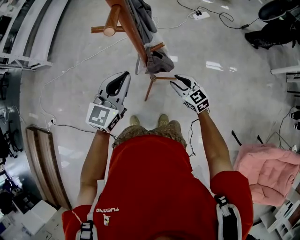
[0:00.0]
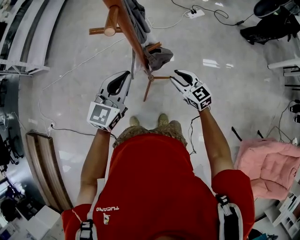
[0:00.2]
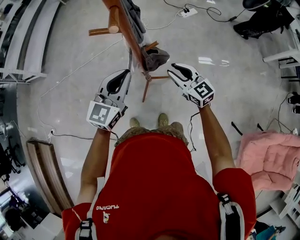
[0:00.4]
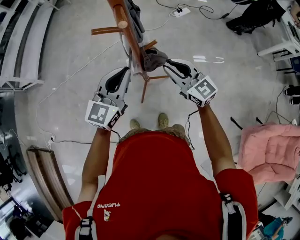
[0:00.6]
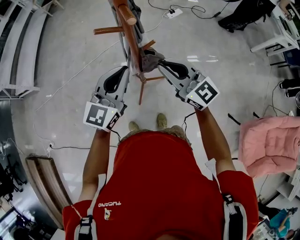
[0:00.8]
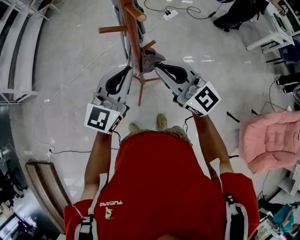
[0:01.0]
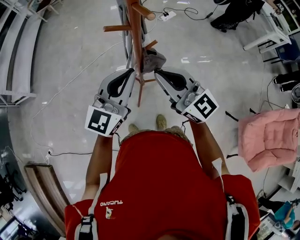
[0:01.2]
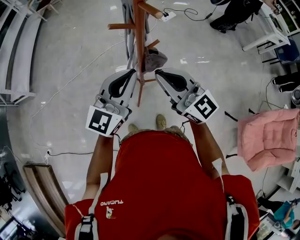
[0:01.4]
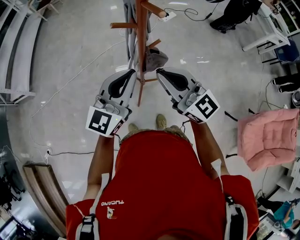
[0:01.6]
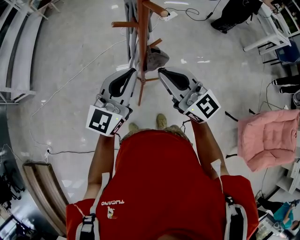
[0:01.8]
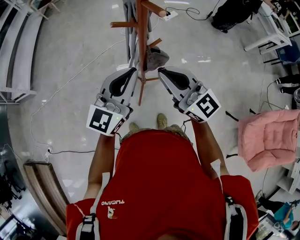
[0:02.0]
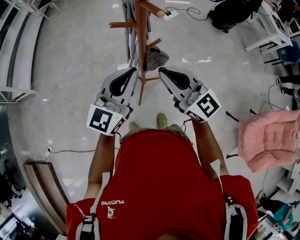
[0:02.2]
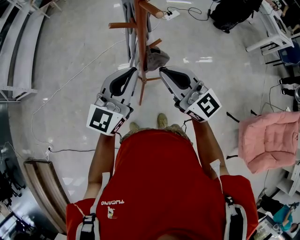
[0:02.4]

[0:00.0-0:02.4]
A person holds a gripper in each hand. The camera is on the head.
0:00.0 to 0:01.2: The left gripper moves upward, roughly 10 cm, and turns by roughly 20 degrees. Meanwhile the right gripper is displaced upward by roughly 30 cm, tilts its fingers approximately 30 degrees upward, and closes its fingers.
0:01.2 to 0:02.4: The grippers make only small movements.

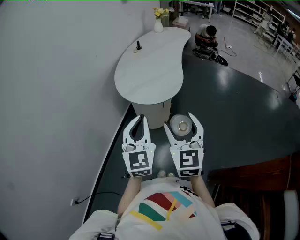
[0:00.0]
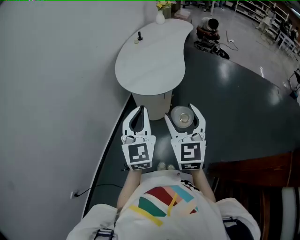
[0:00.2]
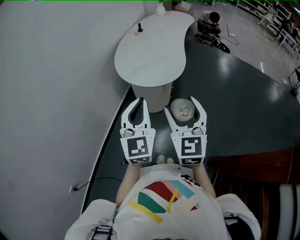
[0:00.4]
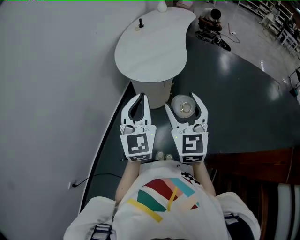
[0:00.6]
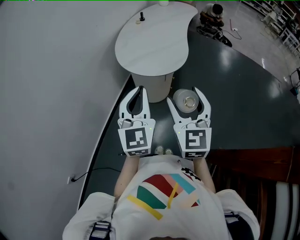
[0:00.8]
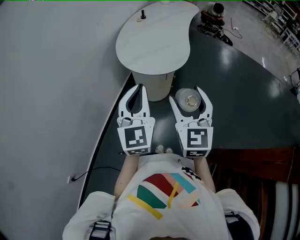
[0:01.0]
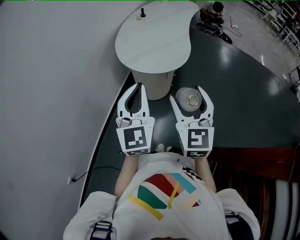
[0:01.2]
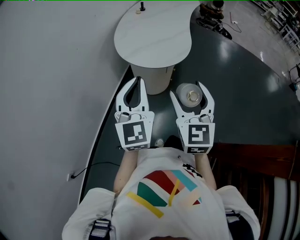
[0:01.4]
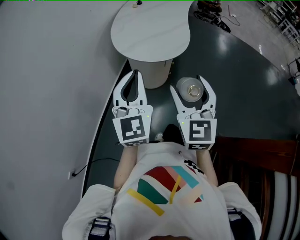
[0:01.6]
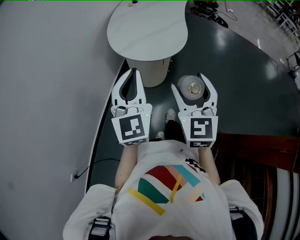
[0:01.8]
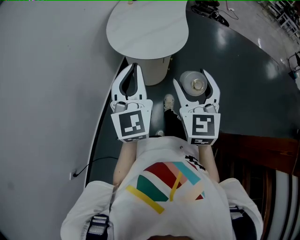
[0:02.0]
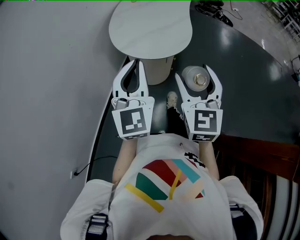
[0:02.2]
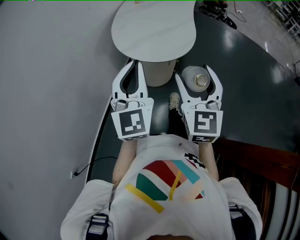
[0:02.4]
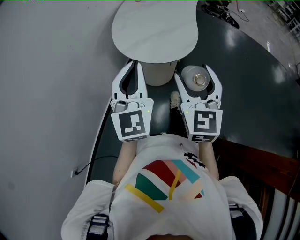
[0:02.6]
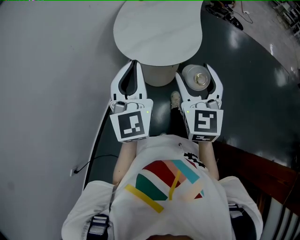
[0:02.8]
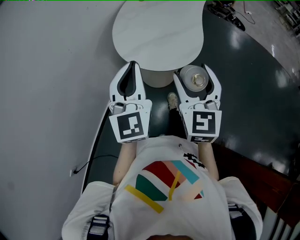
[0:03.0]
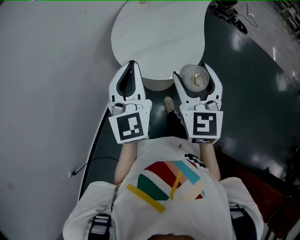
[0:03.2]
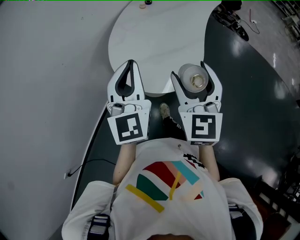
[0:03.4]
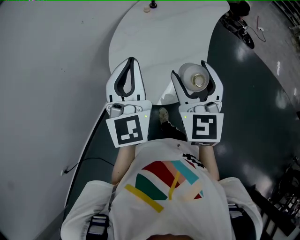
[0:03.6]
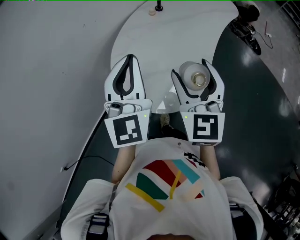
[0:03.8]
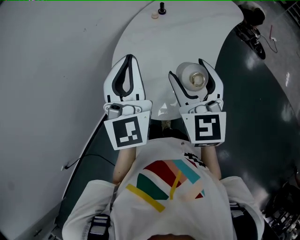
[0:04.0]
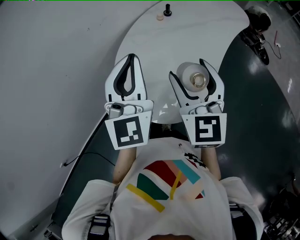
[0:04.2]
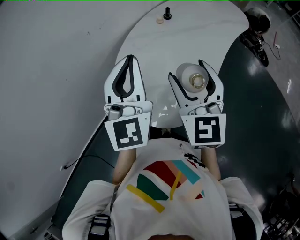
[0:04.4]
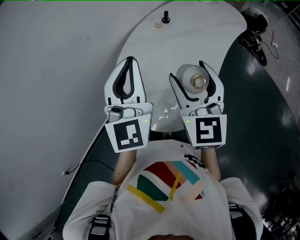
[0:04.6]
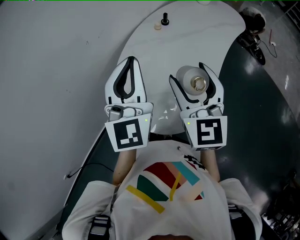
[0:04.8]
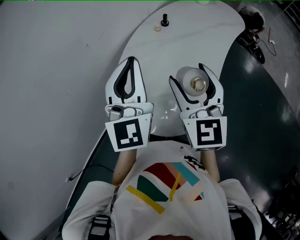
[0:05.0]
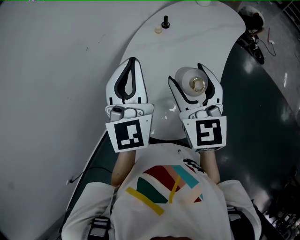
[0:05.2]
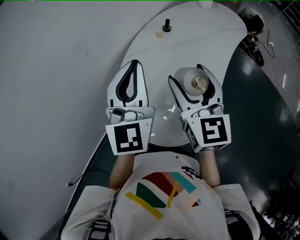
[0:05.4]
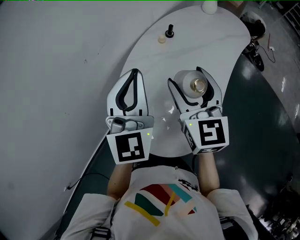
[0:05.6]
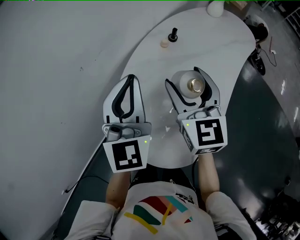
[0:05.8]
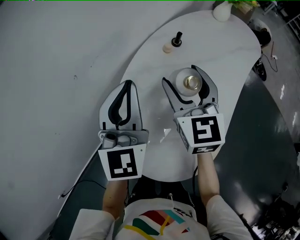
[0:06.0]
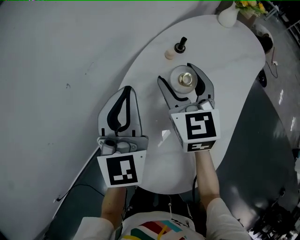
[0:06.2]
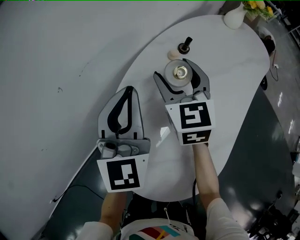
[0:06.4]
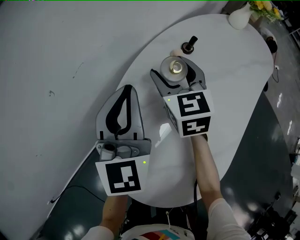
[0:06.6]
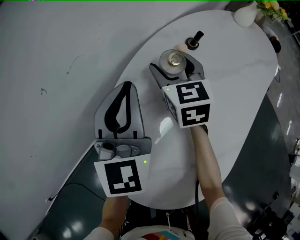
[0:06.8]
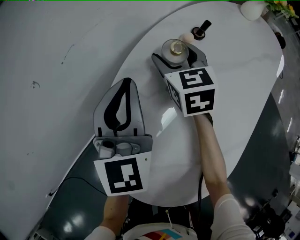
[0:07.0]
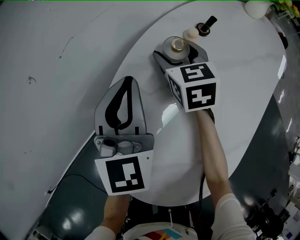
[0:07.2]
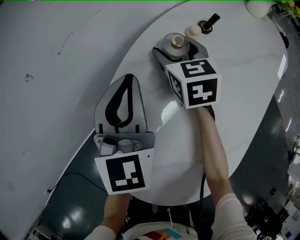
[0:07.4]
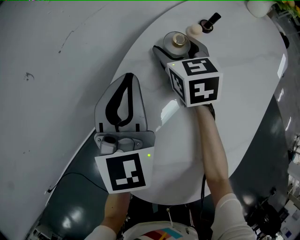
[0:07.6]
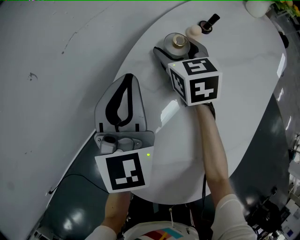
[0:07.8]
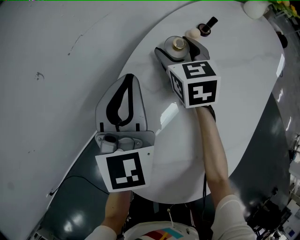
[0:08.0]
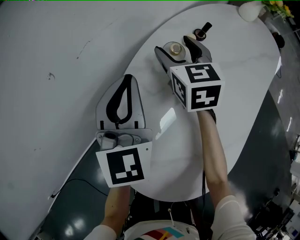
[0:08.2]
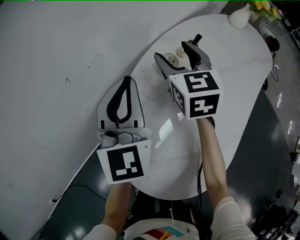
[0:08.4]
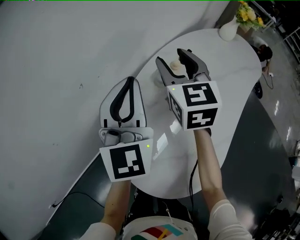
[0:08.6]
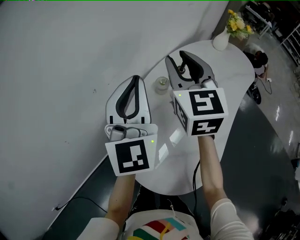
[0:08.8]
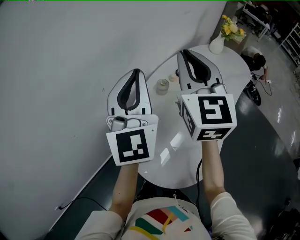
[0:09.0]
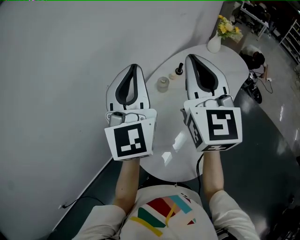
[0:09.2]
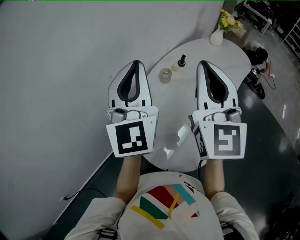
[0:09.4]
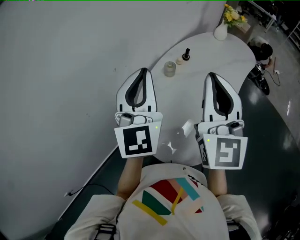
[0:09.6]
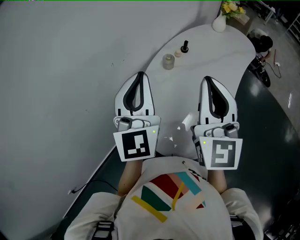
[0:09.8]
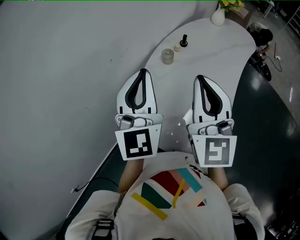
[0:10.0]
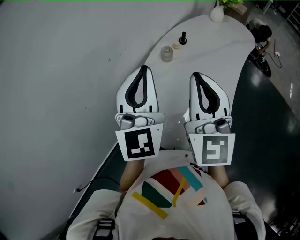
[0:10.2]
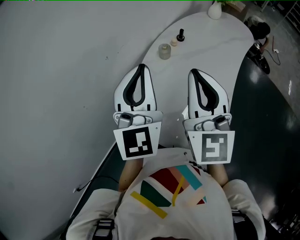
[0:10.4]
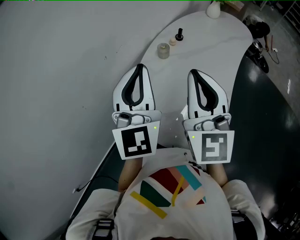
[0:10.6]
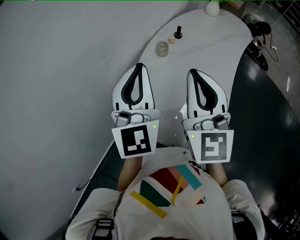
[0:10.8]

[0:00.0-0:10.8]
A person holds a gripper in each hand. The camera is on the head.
0:00.0 to 0:01.6: The left gripper moves to the left, about 5 cm.
0:01.6 to 0:03.0: The grippers both shift forward by roughly 15 cm.
0:03.0 to 0:04.6: The two grippers go roughly 30 cm forward. The right gripper changes its angle by some 20 degrees.
0:04.6 to 0:06.2: Both grippers travel together forward and downward, roughly 25 cm.
0:06.2 to 0:07.8: The right gripper goes some 20 cm downward and forward. The left gripper shifts some 10 cm downward.
0:07.8 to 0:09.2: The right gripper moves upward and backward, roughly 50 cm, points its fingers approximately 40 degrees further upward, and closes its fingers. Meanwhile the left gripper shifts approximately 35 cm upward, and rotates some 20 degrees.
0:09.2 to 0:10.8: The two grippers go some 10 cm backward and downward.

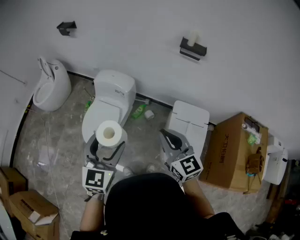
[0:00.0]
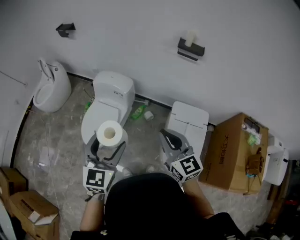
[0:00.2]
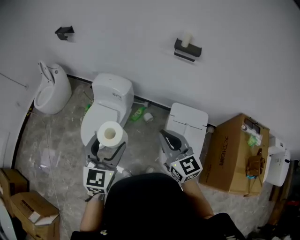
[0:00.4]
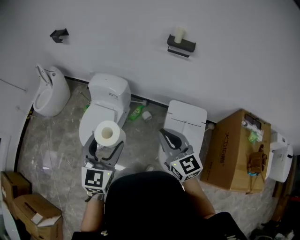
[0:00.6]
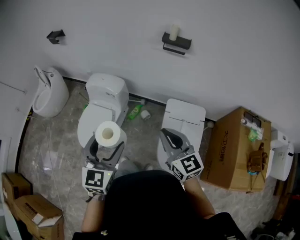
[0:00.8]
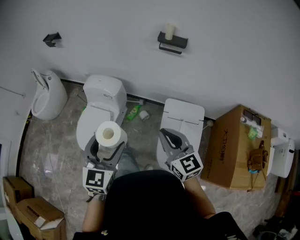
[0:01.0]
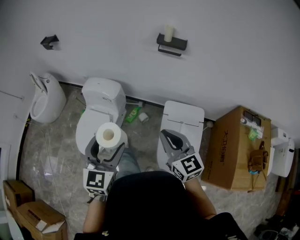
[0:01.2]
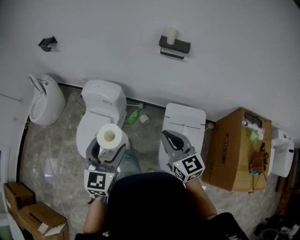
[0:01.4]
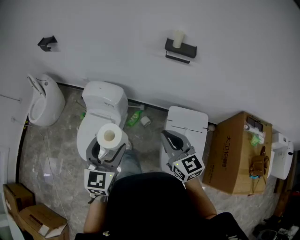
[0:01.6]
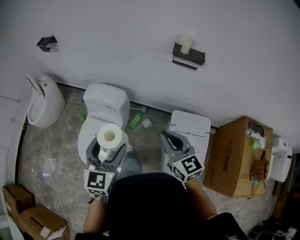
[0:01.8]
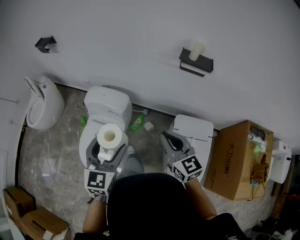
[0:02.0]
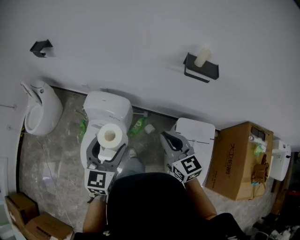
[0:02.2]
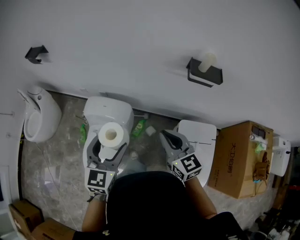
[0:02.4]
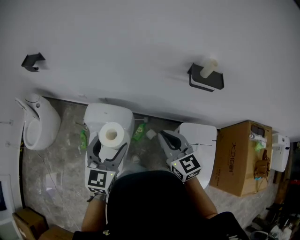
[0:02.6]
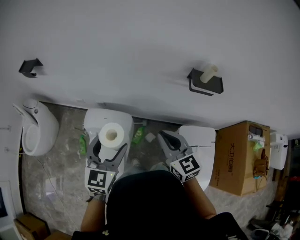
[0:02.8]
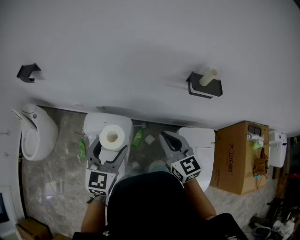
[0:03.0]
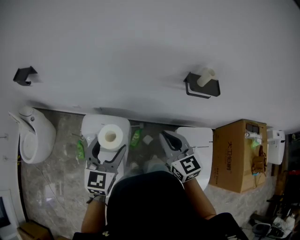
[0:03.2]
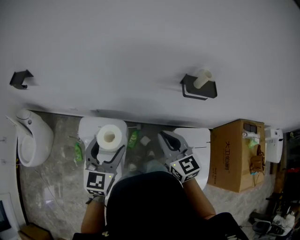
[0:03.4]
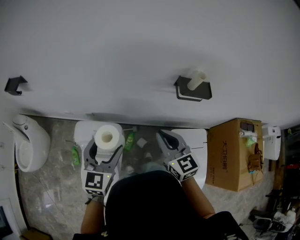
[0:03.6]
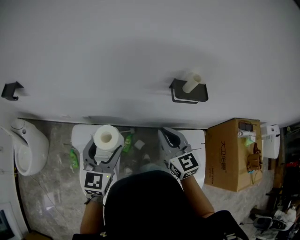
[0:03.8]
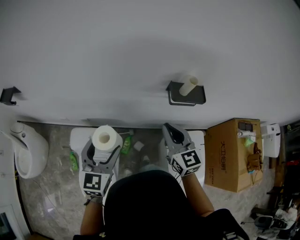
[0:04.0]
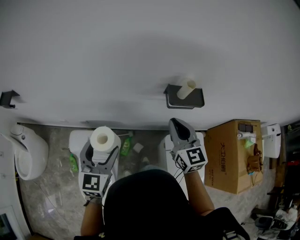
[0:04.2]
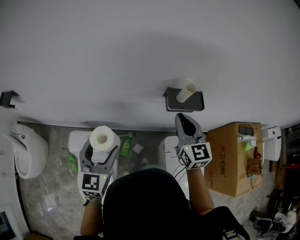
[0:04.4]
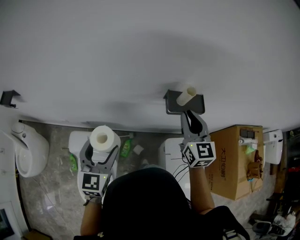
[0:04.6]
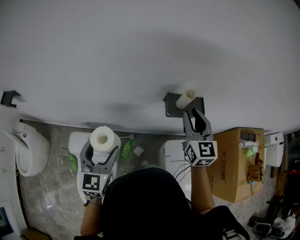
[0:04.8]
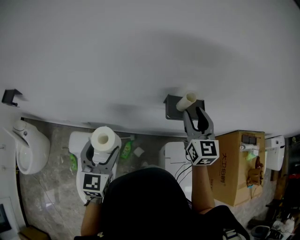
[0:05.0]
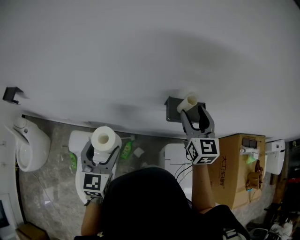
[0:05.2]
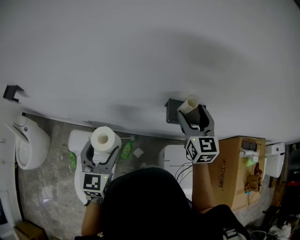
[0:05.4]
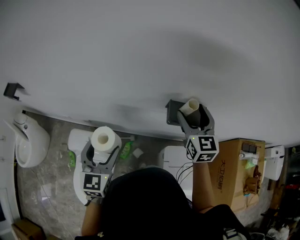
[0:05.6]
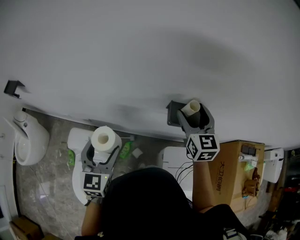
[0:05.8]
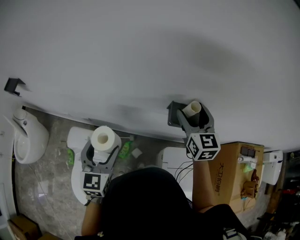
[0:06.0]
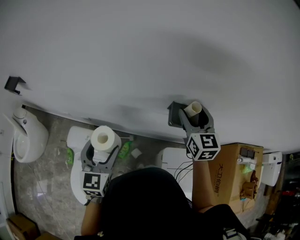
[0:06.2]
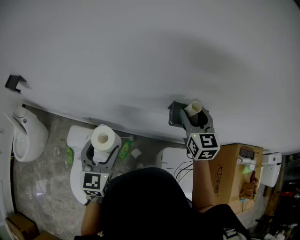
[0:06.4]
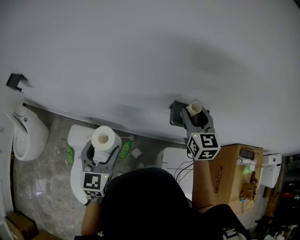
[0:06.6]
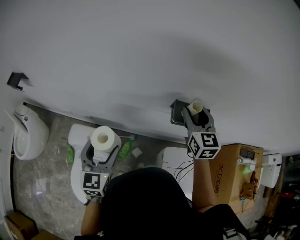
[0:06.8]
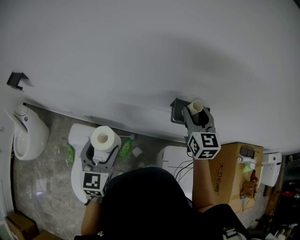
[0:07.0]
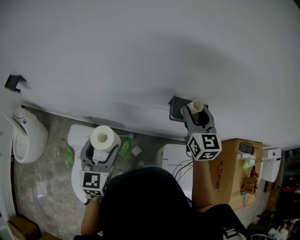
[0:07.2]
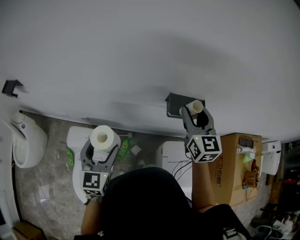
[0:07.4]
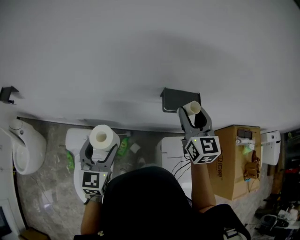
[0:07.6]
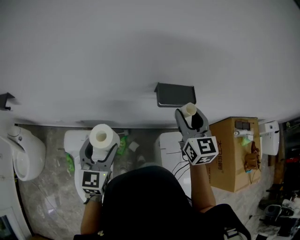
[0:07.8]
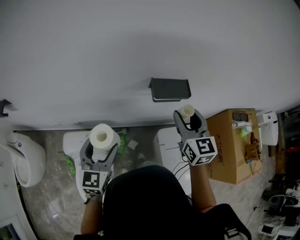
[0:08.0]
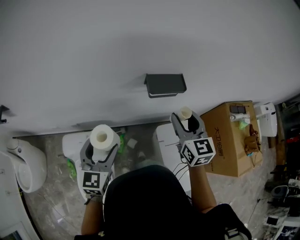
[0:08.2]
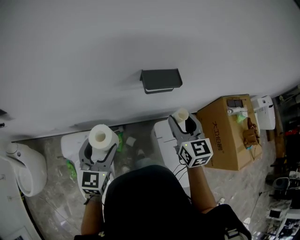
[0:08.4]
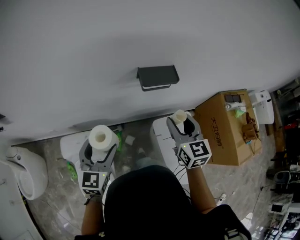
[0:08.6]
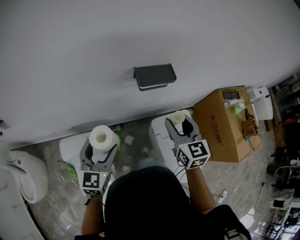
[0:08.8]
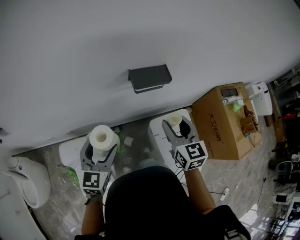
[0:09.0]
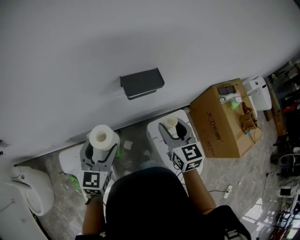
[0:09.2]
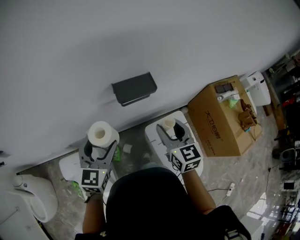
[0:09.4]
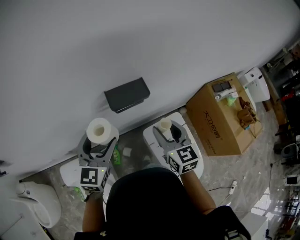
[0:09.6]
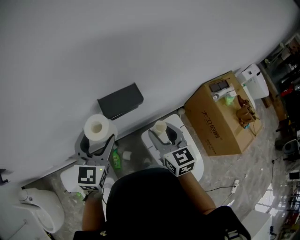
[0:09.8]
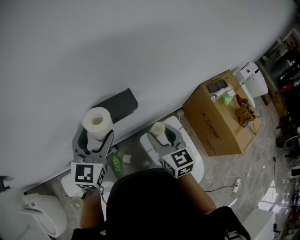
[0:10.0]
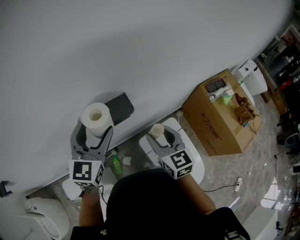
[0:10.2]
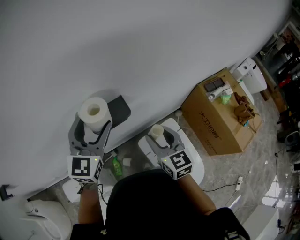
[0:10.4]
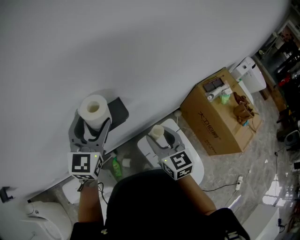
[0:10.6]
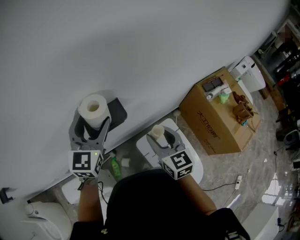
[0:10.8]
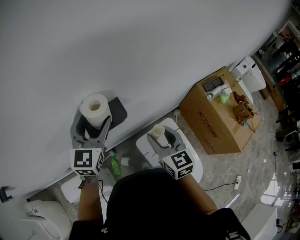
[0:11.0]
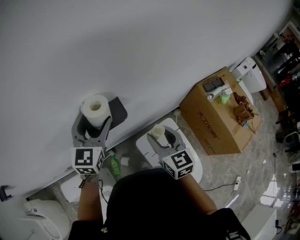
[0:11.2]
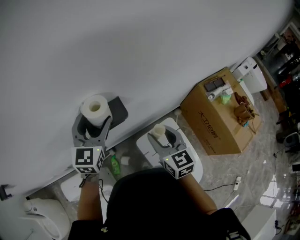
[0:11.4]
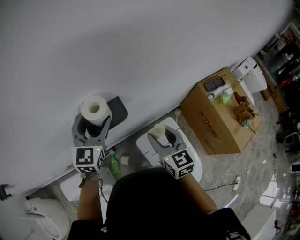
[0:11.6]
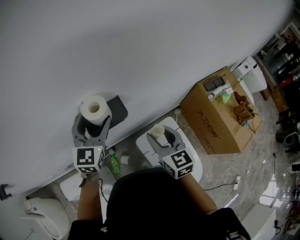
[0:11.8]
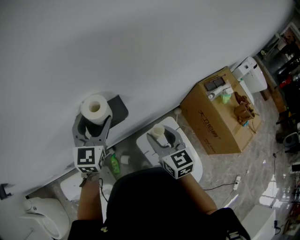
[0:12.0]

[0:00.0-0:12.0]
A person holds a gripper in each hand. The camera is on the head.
0:00.0 to 0:01.6: The left gripper shifts approximately 15 cm forward and to the right. The right gripper goes some 15 cm to the right and forward.
0:01.6 to 0:03.0: The grippers both shift forward and to the left by approximately 35 cm.
0:03.0 to 0:04.4: The right gripper shifts some 25 cm to the right and forward, and changes its angle by approximately 20 degrees; the left gripper goes approximately 15 cm forward and to the right.
0:04.4 to 0:06.0: The right gripper is displaced forward by about 10 cm, and opens its fingers.
0:06.0 to 0:07.6: The right gripper travels backward by some 10 cm, and closes.
0:07.6 to 0:09.0: The right gripper travels backward and downward by roughly 15 cm, while the left gripper is displaced to the right by about 5 cm.
0:09.0 to 0:10.4: The right gripper heads to the right and forward, covering approximately 15 cm. Meanwhile the left gripper moves forward, to the right and upward, some 30 cm, and swivels approximately 20 degrees.
0:10.4 to 0:12.0: The left gripper heads downward, covering roughly 5 cm.
